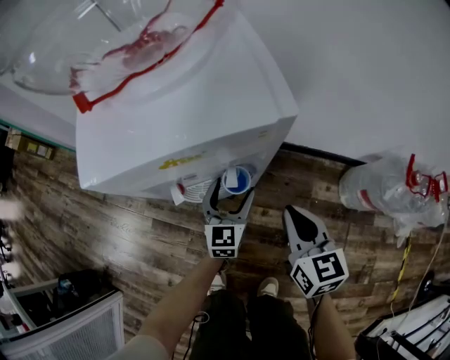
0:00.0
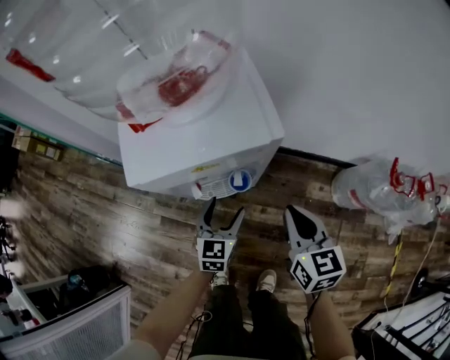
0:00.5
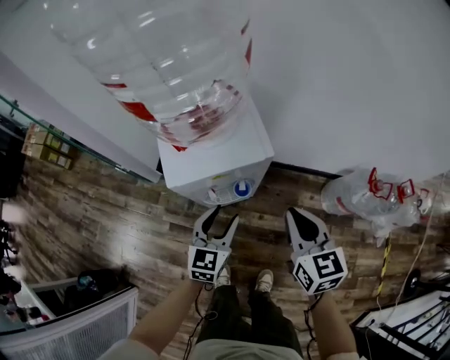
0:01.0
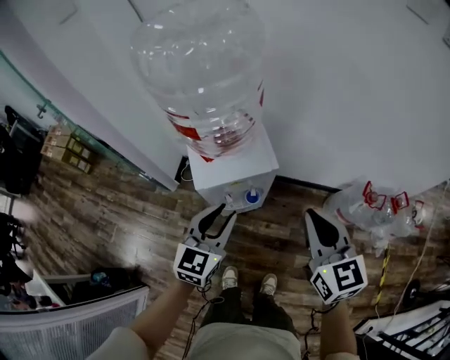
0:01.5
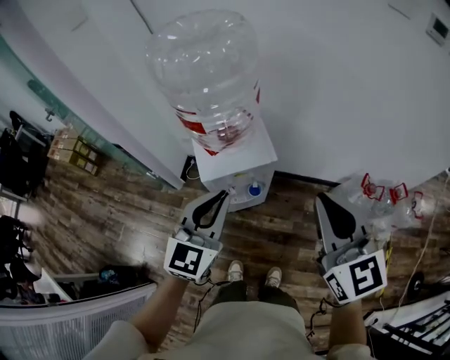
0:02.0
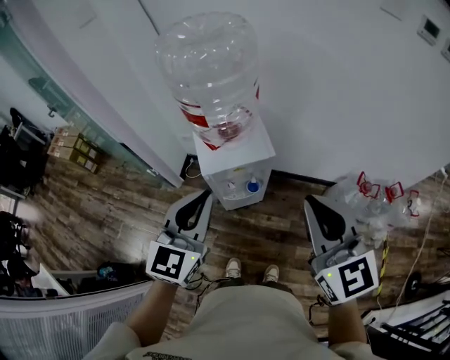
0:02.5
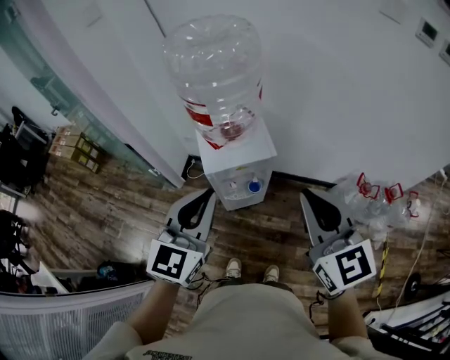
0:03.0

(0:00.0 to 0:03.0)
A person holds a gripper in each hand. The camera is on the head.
0:00.0 - 0:01.5: Both grippers move upward, roughly 50 cm. The left gripper closes up.
0:01.5 - 0:03.0: The grippers both shift upward and backward by about 15 cm.

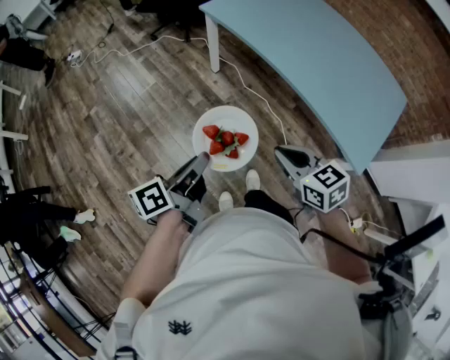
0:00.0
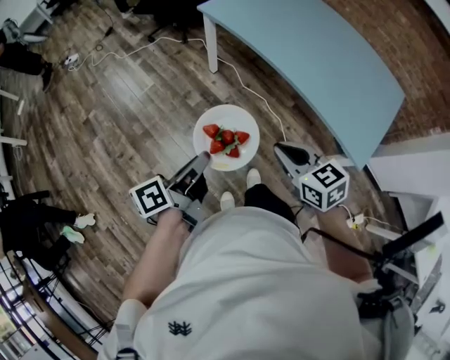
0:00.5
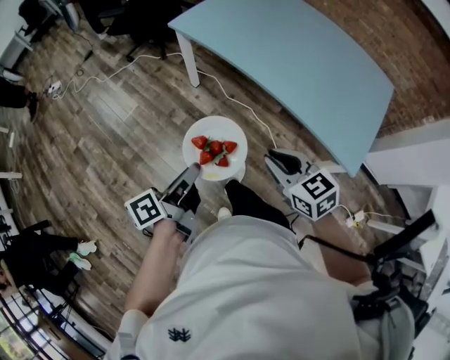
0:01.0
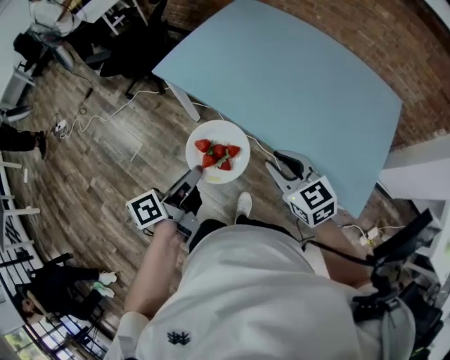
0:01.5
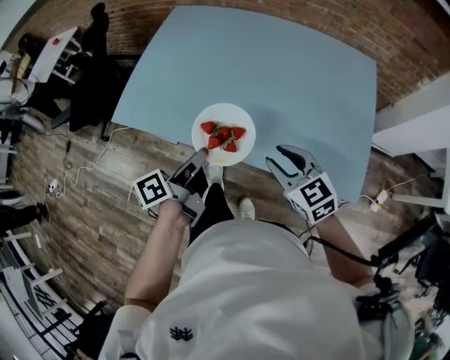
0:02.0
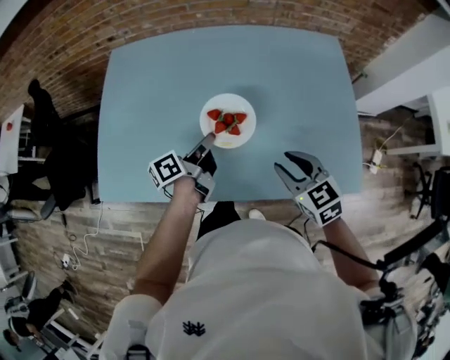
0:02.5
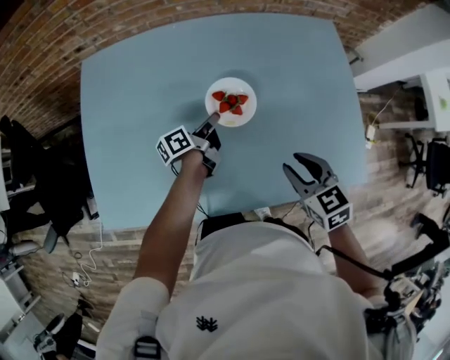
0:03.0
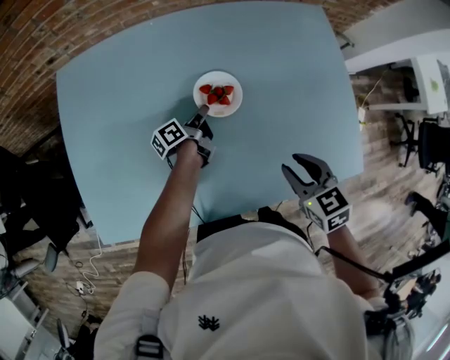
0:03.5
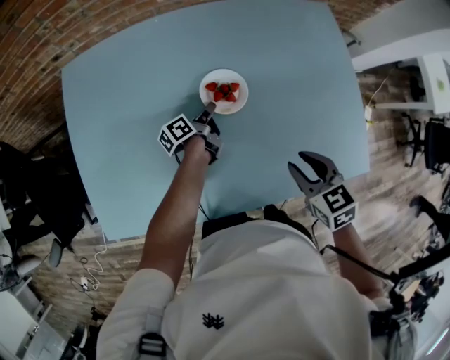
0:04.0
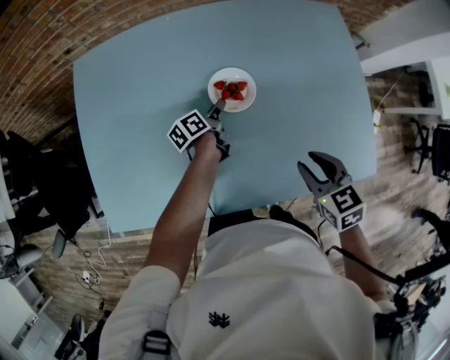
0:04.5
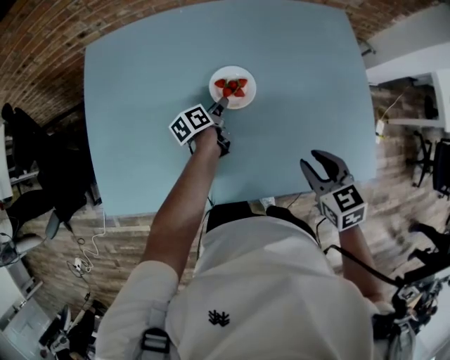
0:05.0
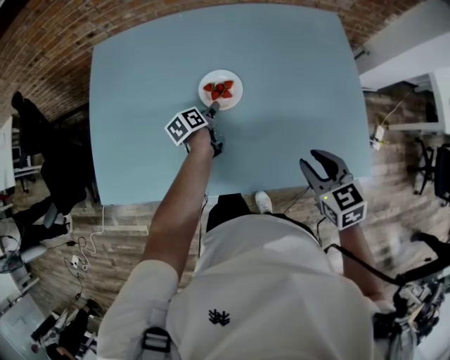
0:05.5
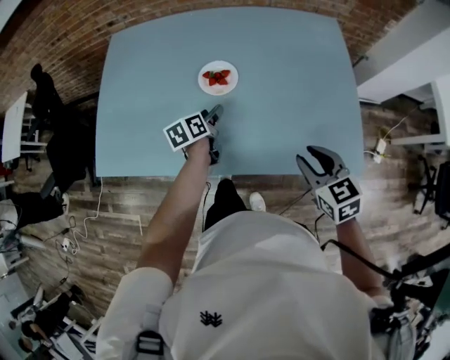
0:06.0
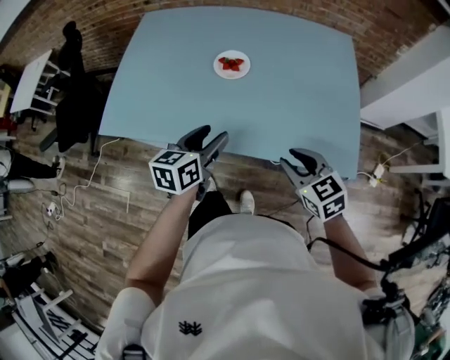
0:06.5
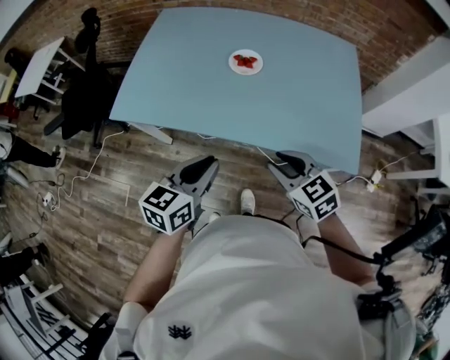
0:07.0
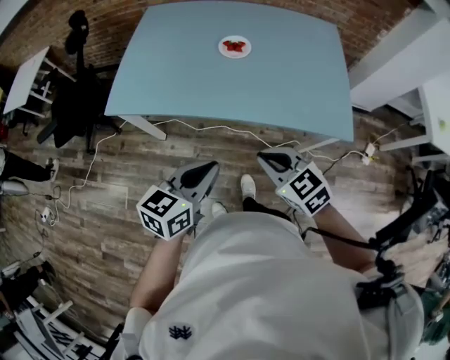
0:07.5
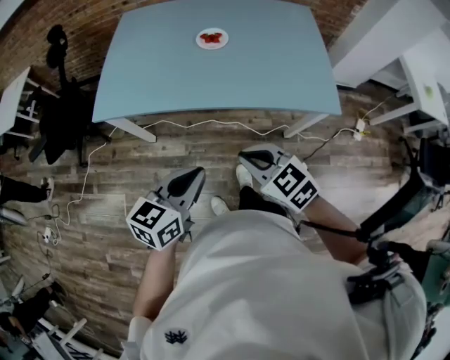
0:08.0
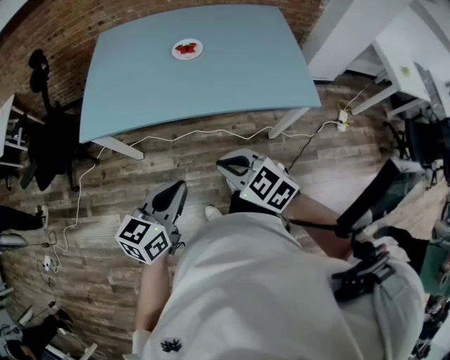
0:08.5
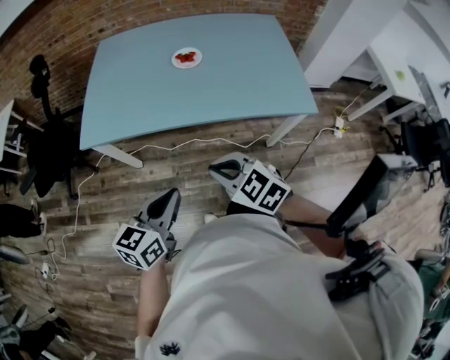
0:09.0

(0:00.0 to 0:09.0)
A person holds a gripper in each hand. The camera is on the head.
0:00.0 - 0:02.0: The right gripper changes place by about 35 cm, swivels roughly 30 degrees, and opens its fingers; the left gripper shifts by about 50 cm, and turns by about 30 degrees.
0:02.0 - 0:04.5: The left gripper ends up some 50 cm from where it was, rotates roughly 30 degrees, and opens up; the right gripper shifts by about 15 cm, and changes its angle by some 40 degrees.
0:04.5 - 0:07.0: The right gripper shifts some 25 cm backward, and rotates some 40 degrees. The left gripper shifts about 60 cm backward and upward, twists about 50 degrees clockwise, seen from behind, and opens and closes again.
0:07.0 - 0:09.0: The left gripper is displaced backward and to the left by about 20 cm; the right gripper moves to the left and backward, approximately 20 cm, and closes up.

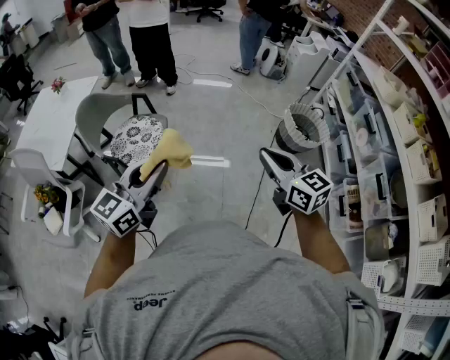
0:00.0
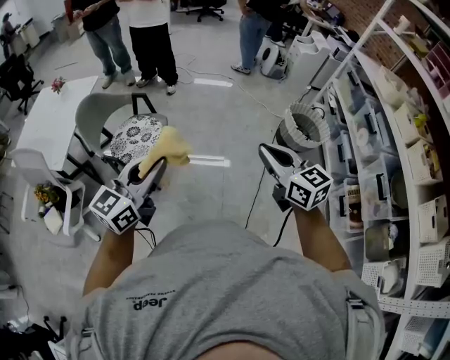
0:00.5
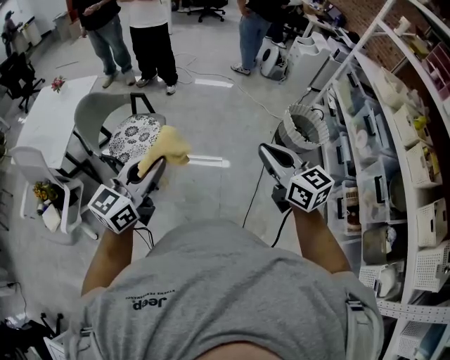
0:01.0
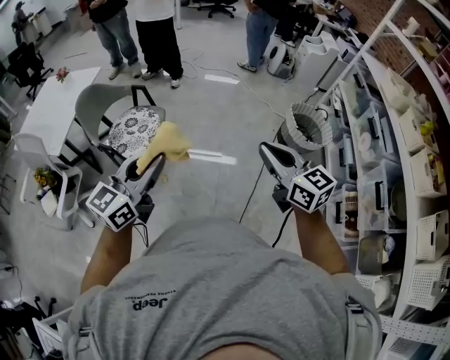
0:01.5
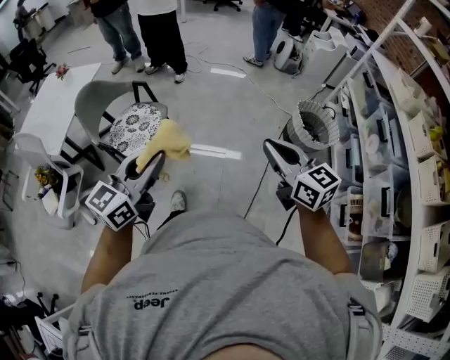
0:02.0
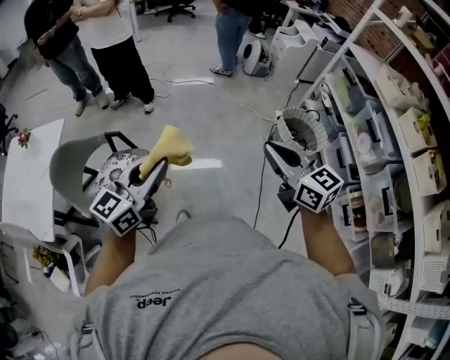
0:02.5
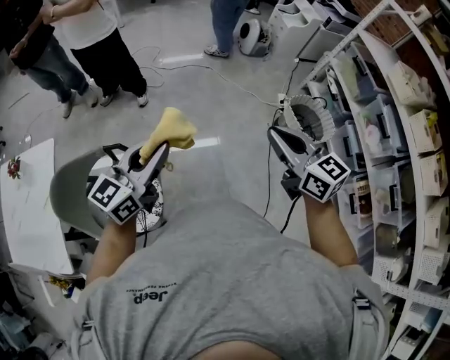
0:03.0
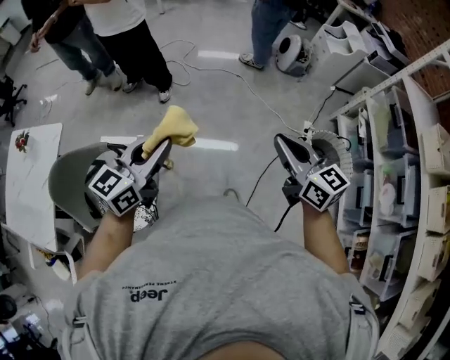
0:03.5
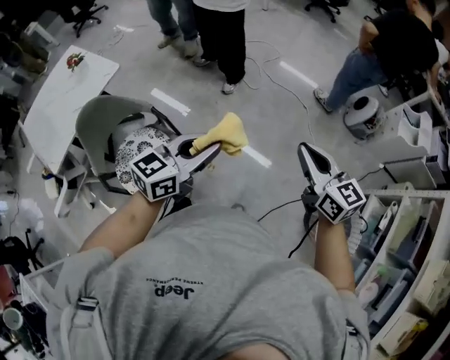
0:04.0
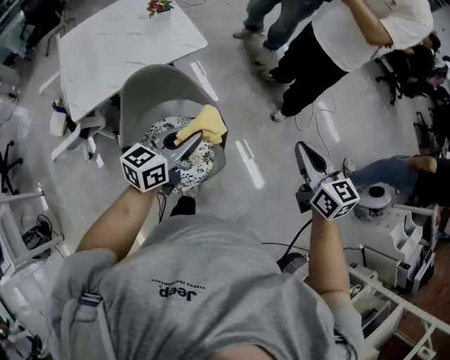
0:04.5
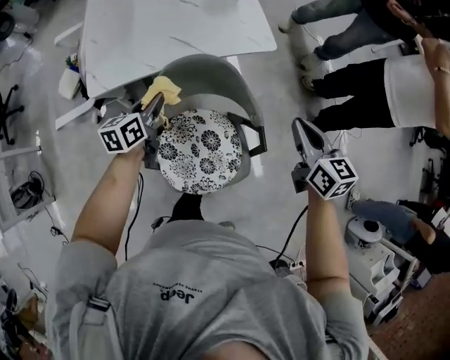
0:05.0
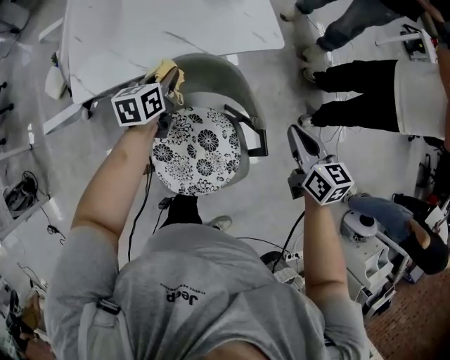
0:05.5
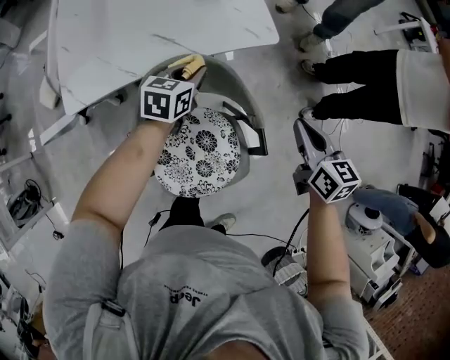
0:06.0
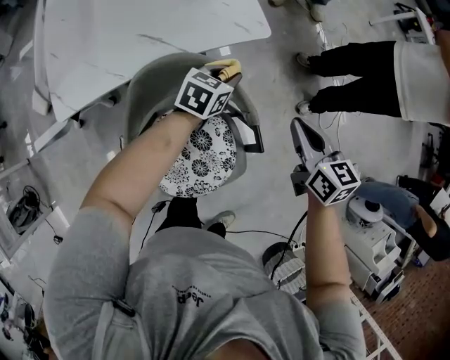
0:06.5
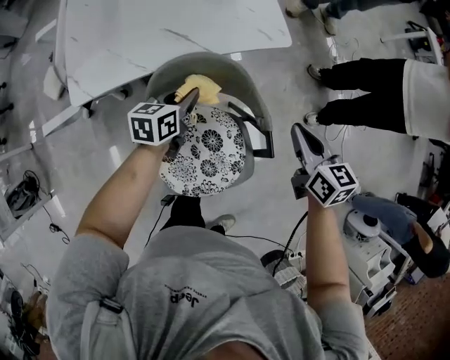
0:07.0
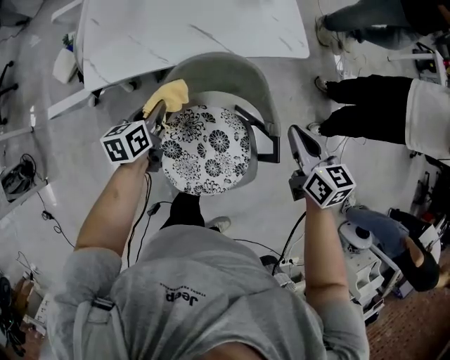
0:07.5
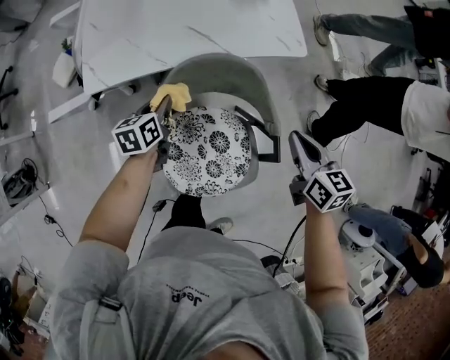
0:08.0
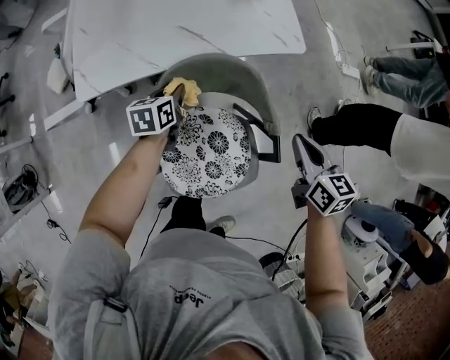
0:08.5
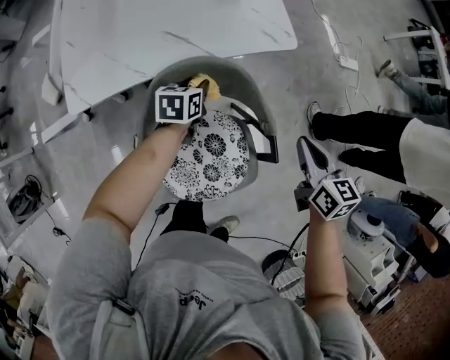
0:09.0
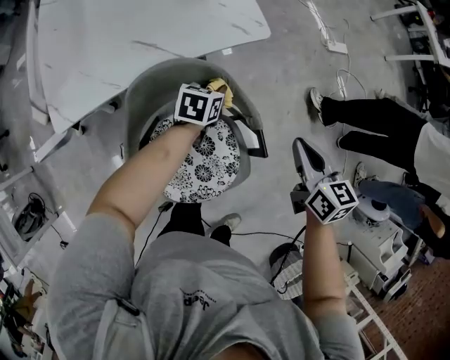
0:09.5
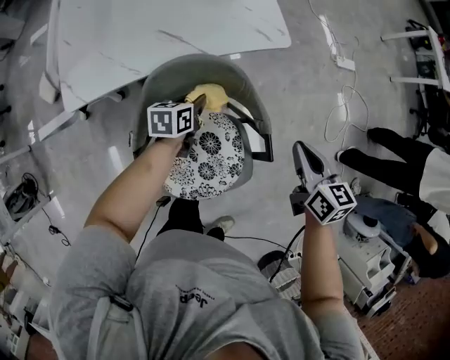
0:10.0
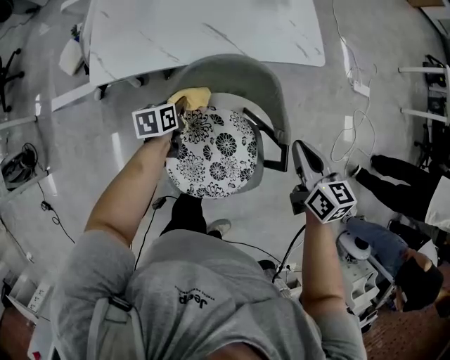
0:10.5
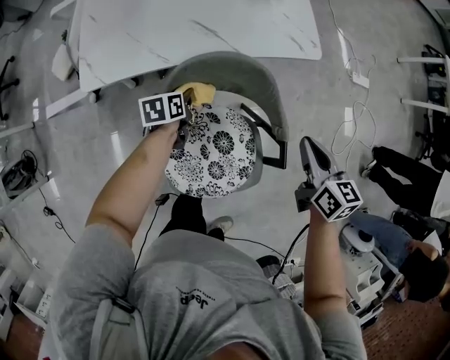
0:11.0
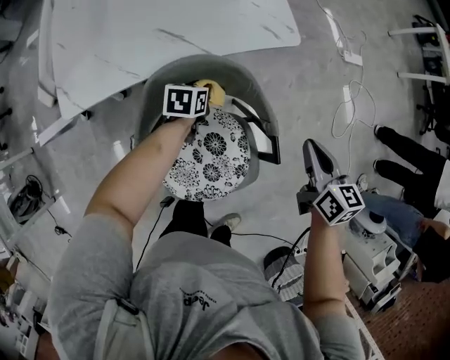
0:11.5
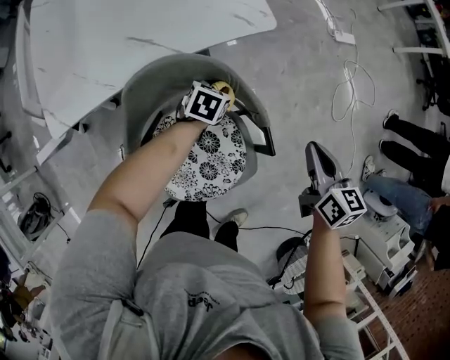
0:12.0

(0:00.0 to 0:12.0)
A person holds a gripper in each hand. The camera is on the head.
0:00.0 - 0:02.0: Both grippers travel together to the right, some 10 cm.
0:02.0 - 0:04.0: The pair of grippers is taken roughly 60 cm.
0:04.0 - 0:06.0: The two grippers travel together, approximately 70 cm. The left gripper swivels some 60 degrees. The right gripper swivels about 40 degrees.
0:06.0 - 0:08.0: The left gripper shifts roughly 20 cm to the left and backward, and rotates some 30 degrees; the right gripper moves to the left, some 5 cm.
0:08.0 - 0:10.0: The left gripper heads to the right, covering approximately 15 cm. The right gripper moves to the right, about 5 cm.
0:10.0 - 0:12.0: The left gripper travels to the right by approximately 10 cm, and rotates roughly 30 degrees; the right gripper is displaced to the right by some 5 cm.

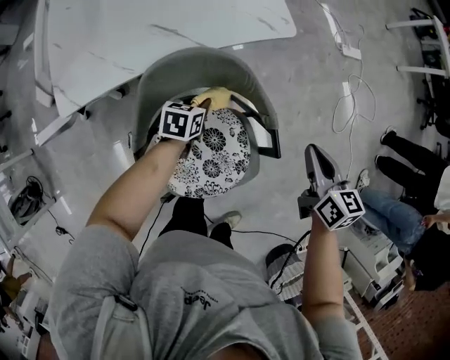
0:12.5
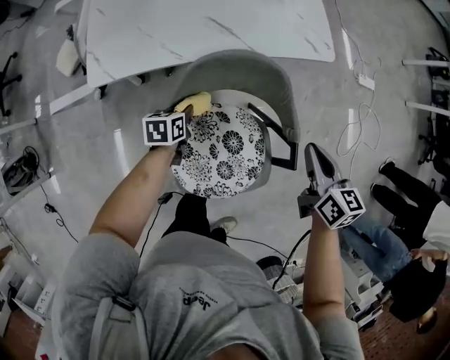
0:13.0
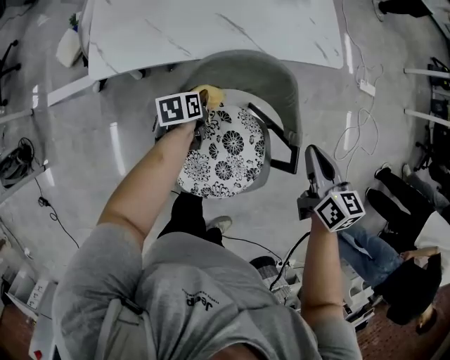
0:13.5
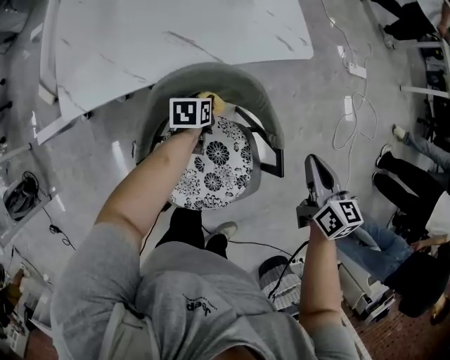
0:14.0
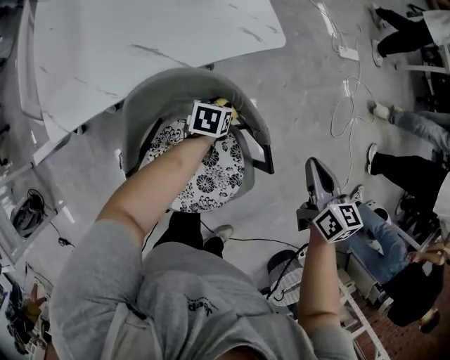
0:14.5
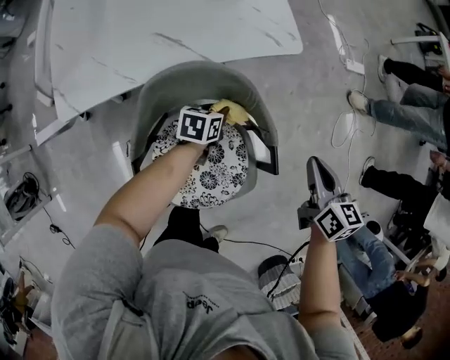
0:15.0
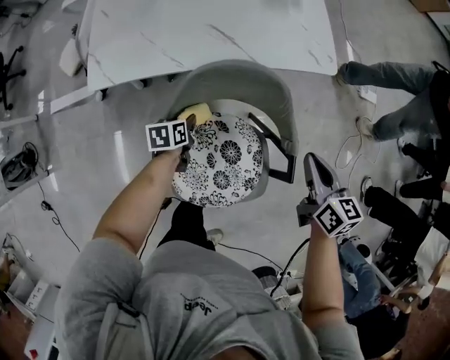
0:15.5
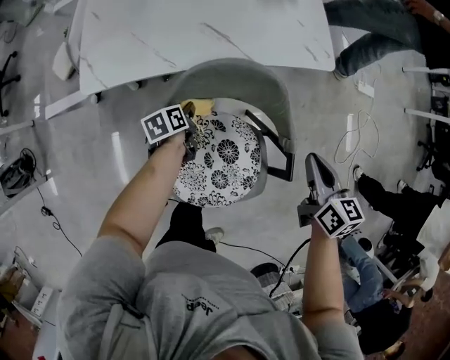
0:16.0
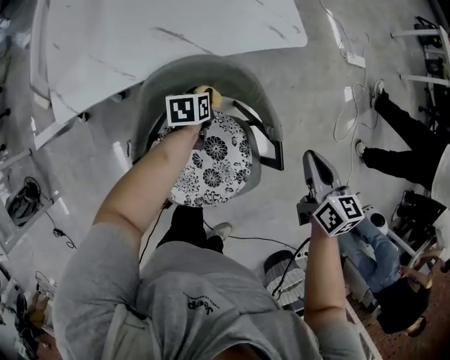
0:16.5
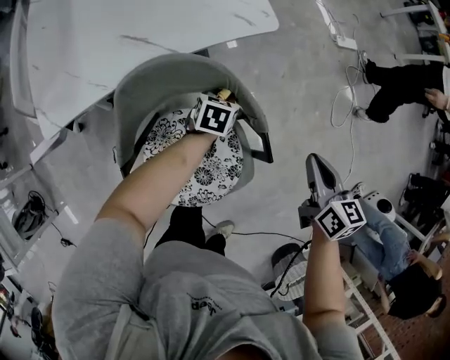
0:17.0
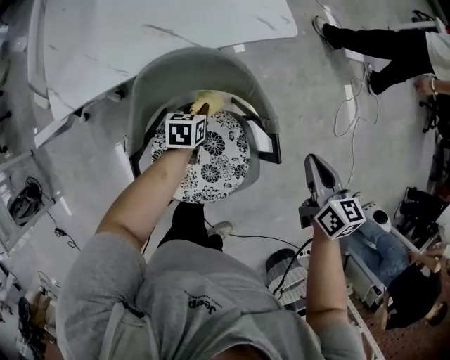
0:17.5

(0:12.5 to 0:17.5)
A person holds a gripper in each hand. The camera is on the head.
0:12.5 - 0:15.0: The left gripper travels to the left and back again, about 15 cm each way. The right gripper moves some 10 cm to the left and comes back.
0:15.0 - 0:17.5: The left gripper moves left and right over about 25 cm, changing direction 2 times. The right gripper goes left and right, approximately 15 cm each way, reversing 2 times.
